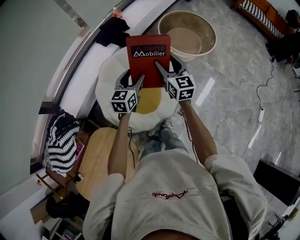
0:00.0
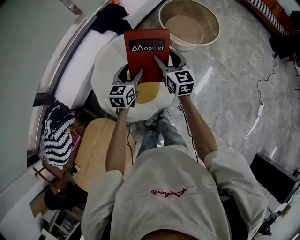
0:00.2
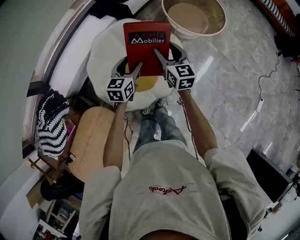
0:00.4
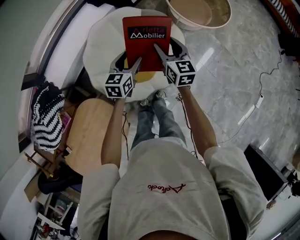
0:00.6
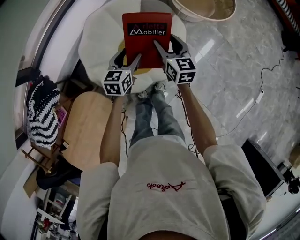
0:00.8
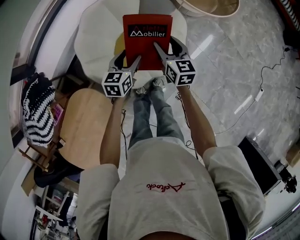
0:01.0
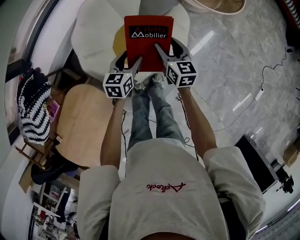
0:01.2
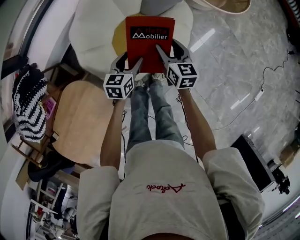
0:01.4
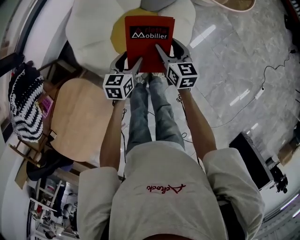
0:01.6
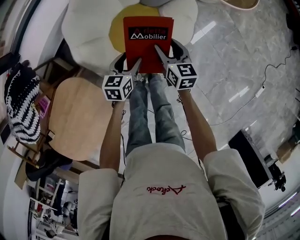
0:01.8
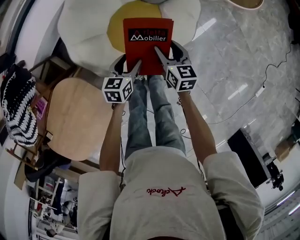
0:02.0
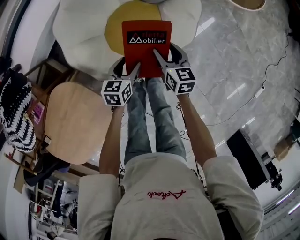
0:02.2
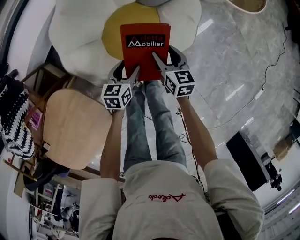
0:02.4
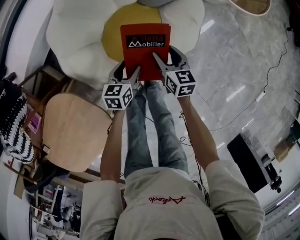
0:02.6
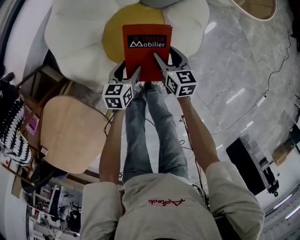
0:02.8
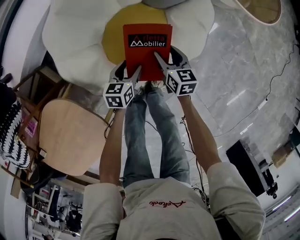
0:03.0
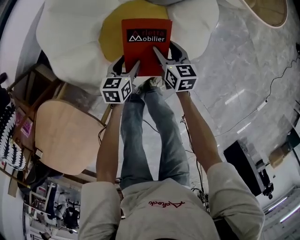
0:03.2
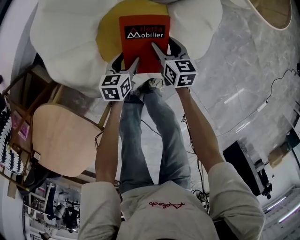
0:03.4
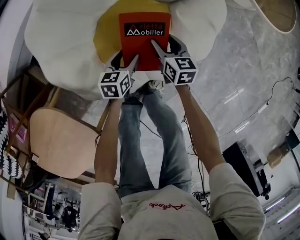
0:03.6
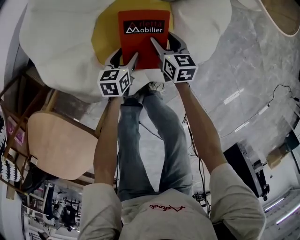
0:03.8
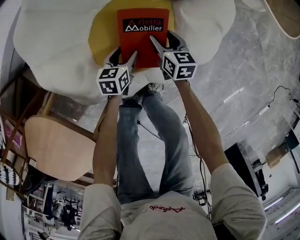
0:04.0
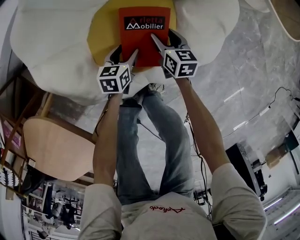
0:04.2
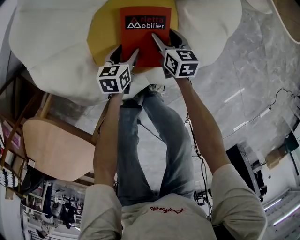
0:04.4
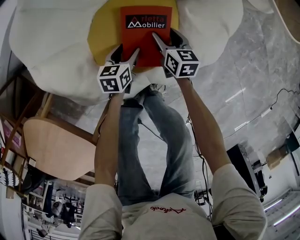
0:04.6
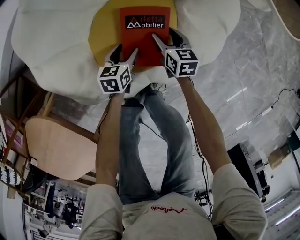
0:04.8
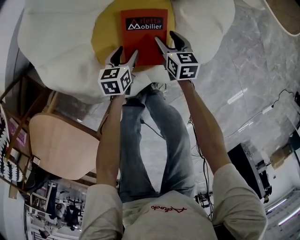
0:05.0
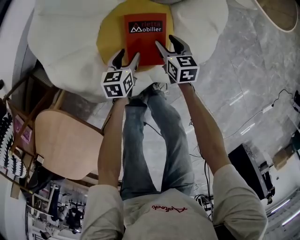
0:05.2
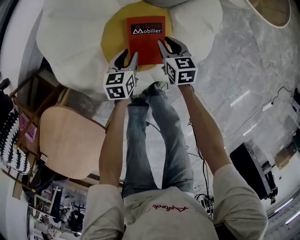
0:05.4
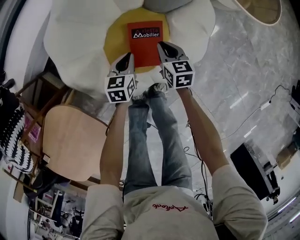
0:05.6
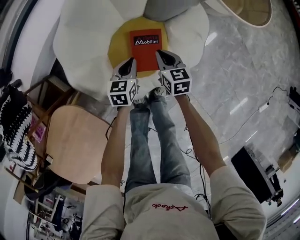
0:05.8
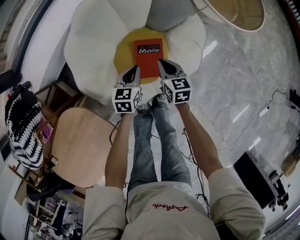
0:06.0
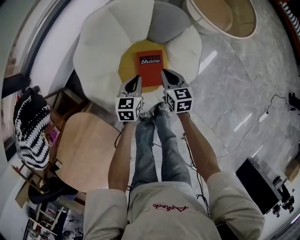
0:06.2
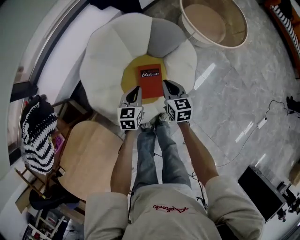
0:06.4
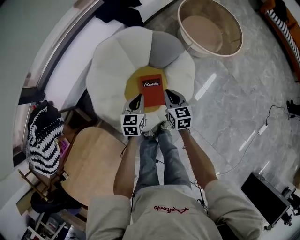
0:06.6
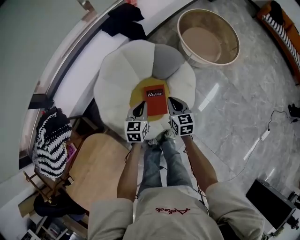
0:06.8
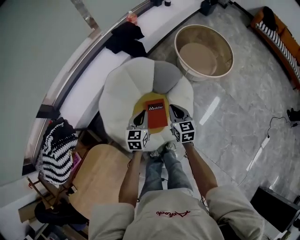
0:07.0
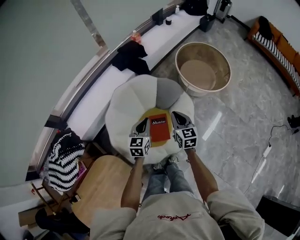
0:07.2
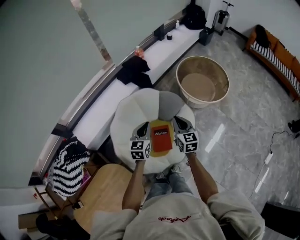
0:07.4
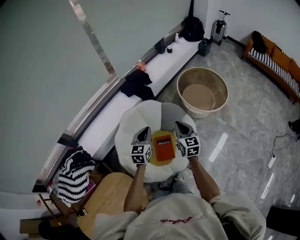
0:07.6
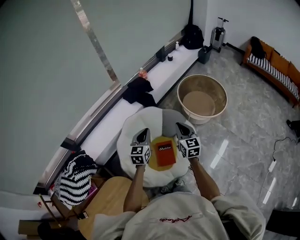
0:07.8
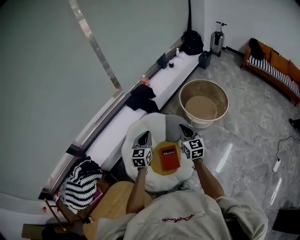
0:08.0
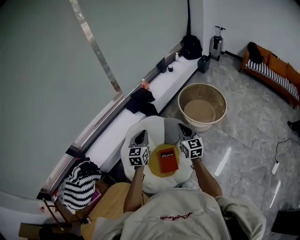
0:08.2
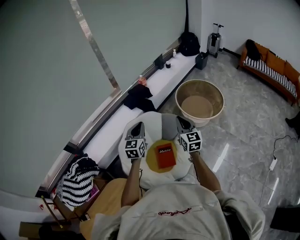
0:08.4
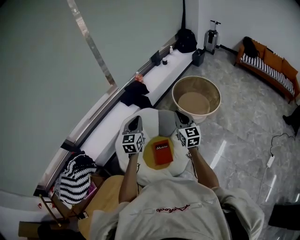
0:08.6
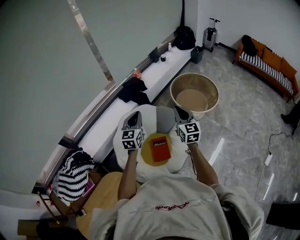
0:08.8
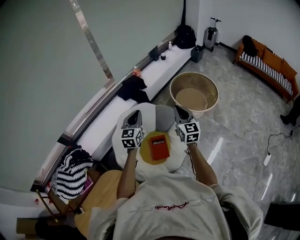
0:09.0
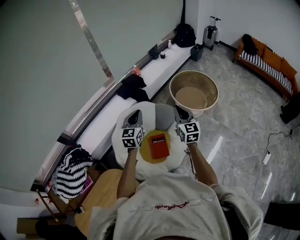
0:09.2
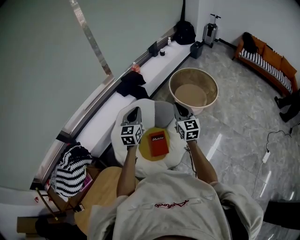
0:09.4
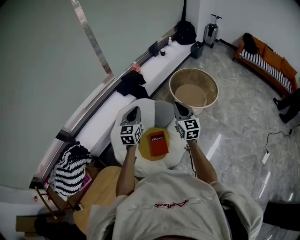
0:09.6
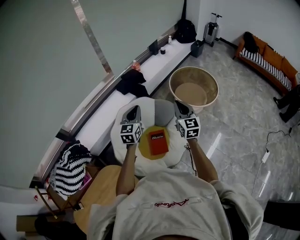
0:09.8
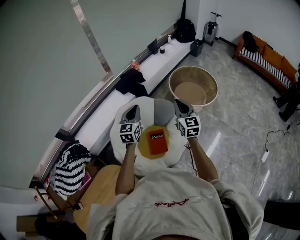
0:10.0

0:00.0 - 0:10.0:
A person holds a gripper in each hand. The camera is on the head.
0:00.0 - 0:01.4: Both grippers move downward, approximately 30 cm. The right gripper rotates approximately 30 degrees. Meanwhile the left gripper changes its angle by approximately 30 degrees.
0:01.4 - 0:02.8: The two grippers go roughly 20 cm downward.
0:02.8 - 0:04.2: The two grippers go approximately 20 cm downward.
0:04.2 - 0:05.8: Both grippers move upward, approximately 25 cm. The left gripper closes its fingers, while the right gripper closes.
0:05.8 - 0:07.2: Both grippers travel together upward, about 35 cm. The right gripper rotates approximately 20 degrees, while the left gripper turns by about 20 degrees.
0:07.2 - 0:08.6: Both grippers move upward, about 20 cm. The right gripper swivels approximately 20 degrees.
0:08.6 - 0:10.0: There are only small adjustments of the grippers.

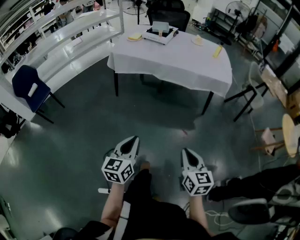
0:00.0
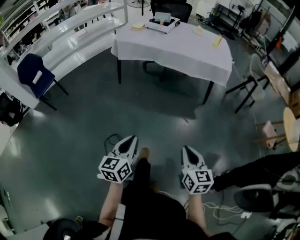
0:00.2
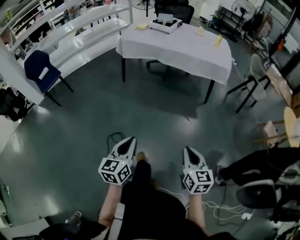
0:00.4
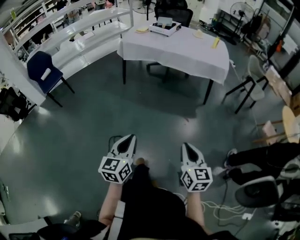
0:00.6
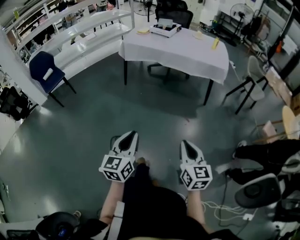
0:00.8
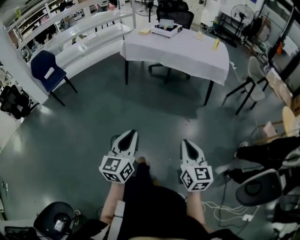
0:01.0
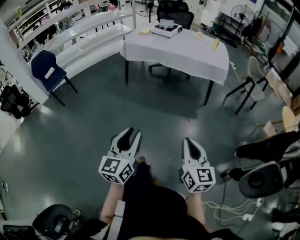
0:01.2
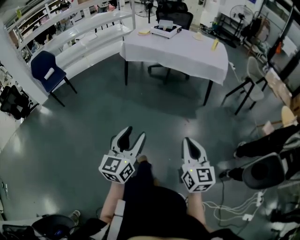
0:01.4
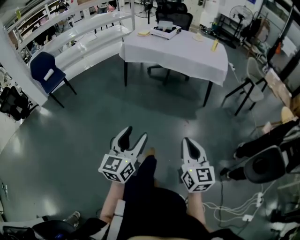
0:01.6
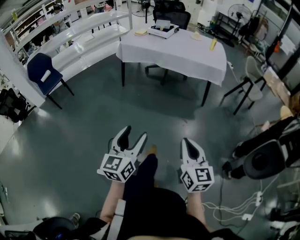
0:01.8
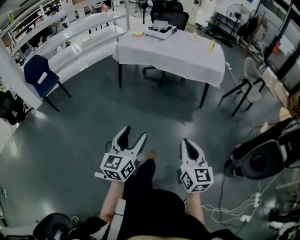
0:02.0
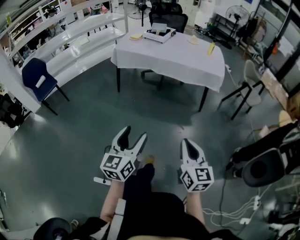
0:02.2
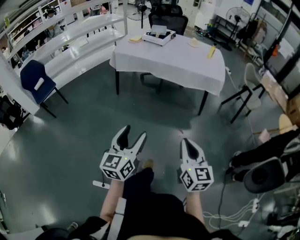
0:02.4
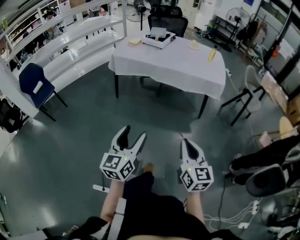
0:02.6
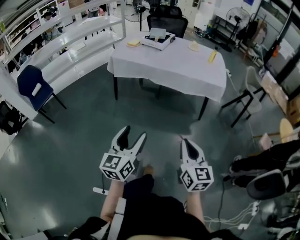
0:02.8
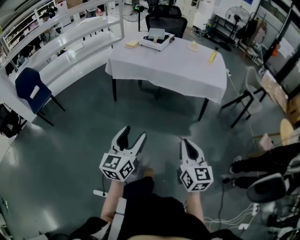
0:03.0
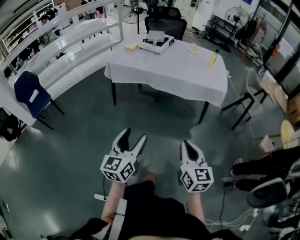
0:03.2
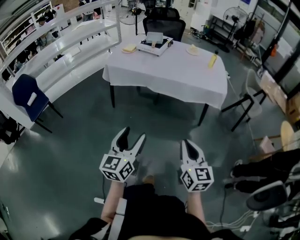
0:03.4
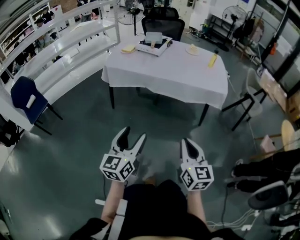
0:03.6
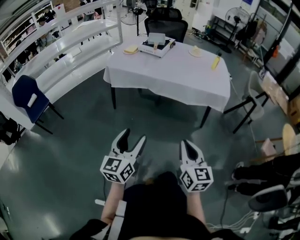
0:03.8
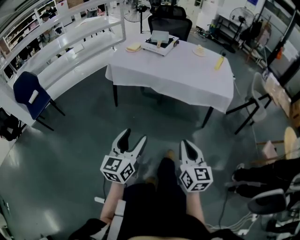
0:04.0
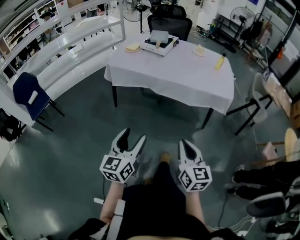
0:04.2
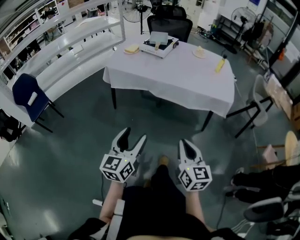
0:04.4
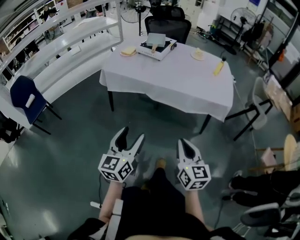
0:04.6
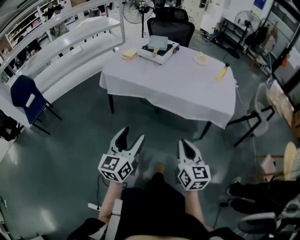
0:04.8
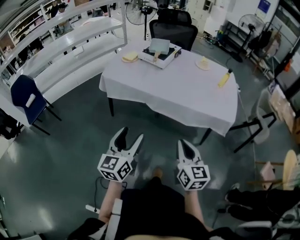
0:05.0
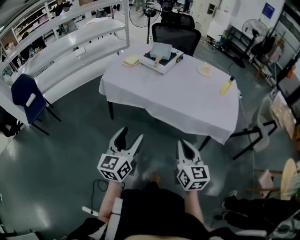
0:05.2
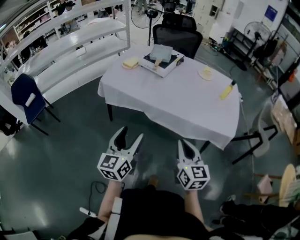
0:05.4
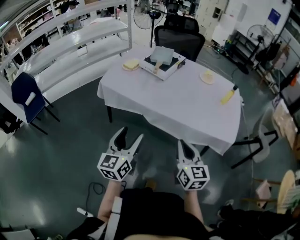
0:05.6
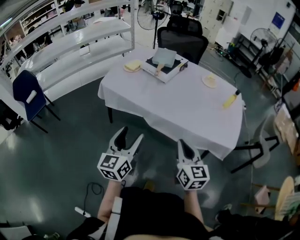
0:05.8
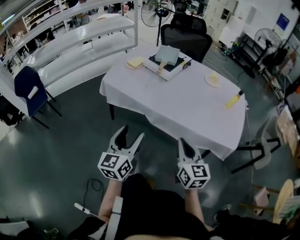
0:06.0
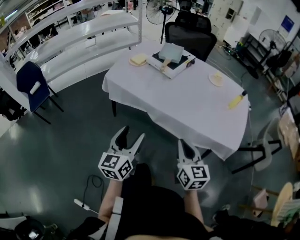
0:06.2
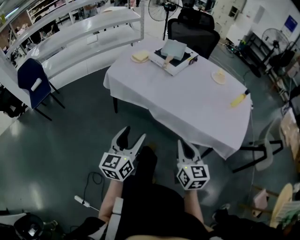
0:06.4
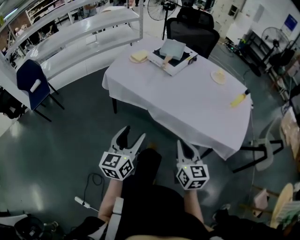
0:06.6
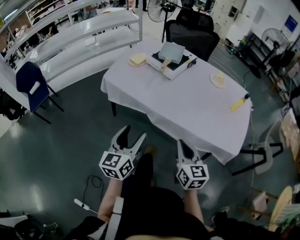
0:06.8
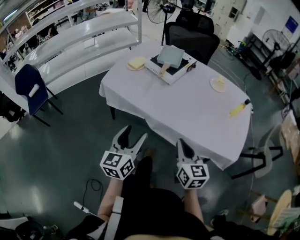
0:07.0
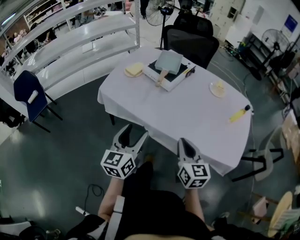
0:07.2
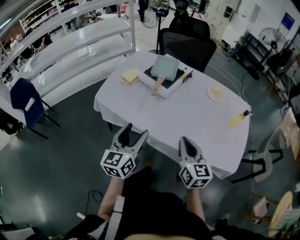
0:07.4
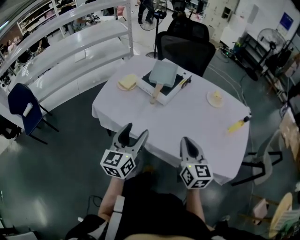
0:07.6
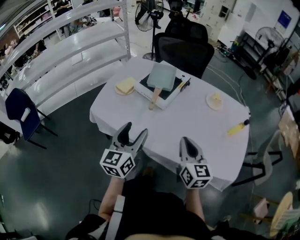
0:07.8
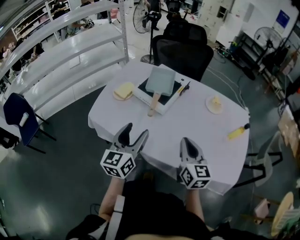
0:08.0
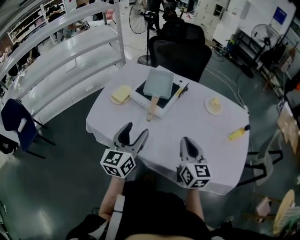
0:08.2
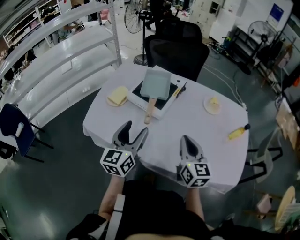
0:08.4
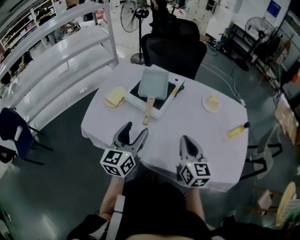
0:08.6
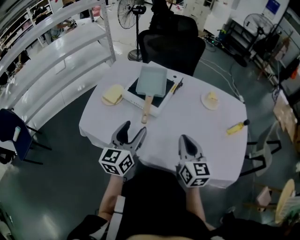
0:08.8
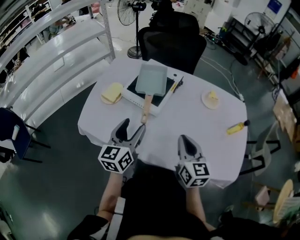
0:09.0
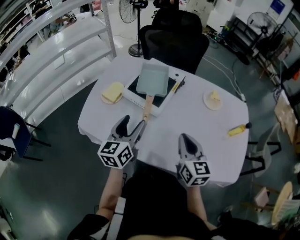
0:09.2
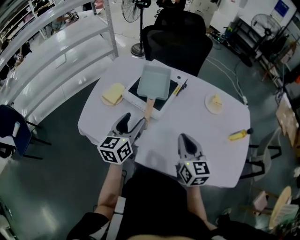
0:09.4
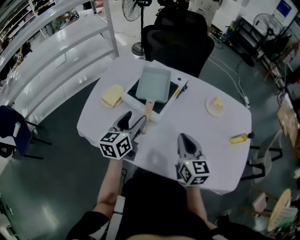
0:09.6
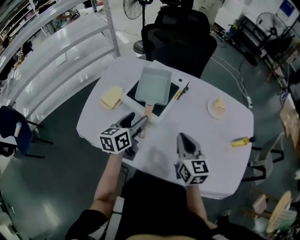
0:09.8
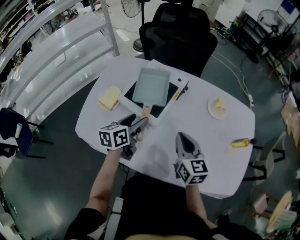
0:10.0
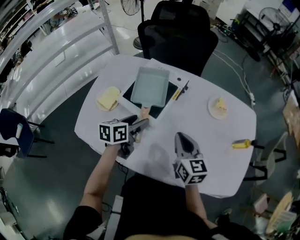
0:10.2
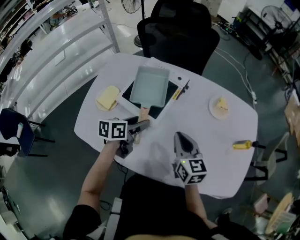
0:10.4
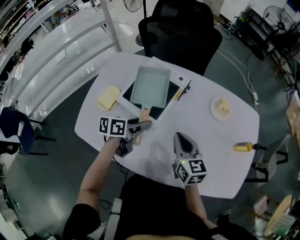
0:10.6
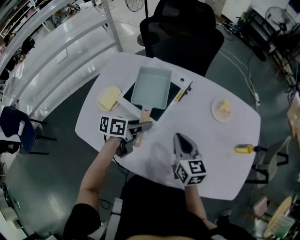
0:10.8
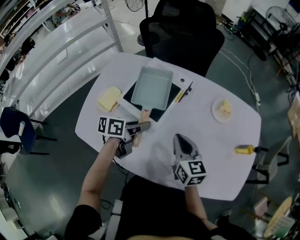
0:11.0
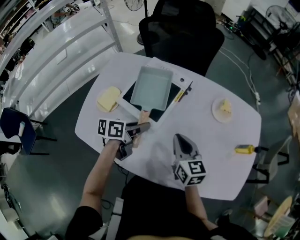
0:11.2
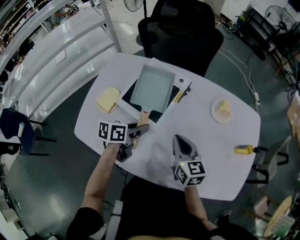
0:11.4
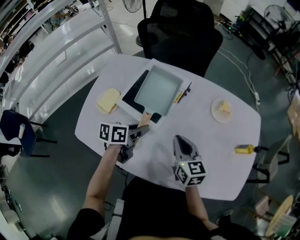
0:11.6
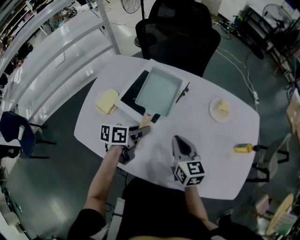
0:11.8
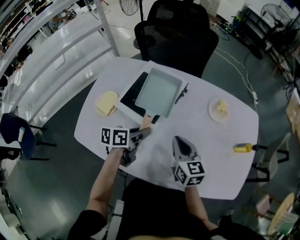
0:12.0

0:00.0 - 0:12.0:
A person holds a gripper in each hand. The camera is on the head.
0:00.0 - 0:01.6: Both grippers move backward, about 25 cm. The left gripper opens its fingers.
0:01.6 - 0:03.0: Both grippers travel together forward, roughly 25 cm.
0:03.0 - 0:04.4: The grippers both shift forward by approximately 15 cm.
0:04.4 - 0:06.0: The grippers both shift forward by some 30 cm.
0:06.0 - 0:07.6: Both grippers travel together forward, some 25 cm.
0:07.6 - 0:09.0: Both grippers move forward, roughly 15 cm.
0:09.0 - 0:10.4: The right gripper travels forward by roughly 15 cm; the left gripper is displaced forward and downward by about 20 cm, and rotates roughly 40 degrees.
0:10.4 - 0:12.0: The left gripper closes up.

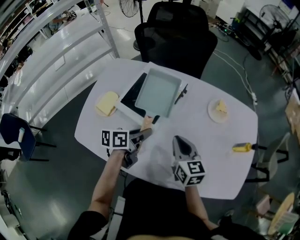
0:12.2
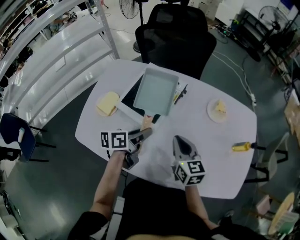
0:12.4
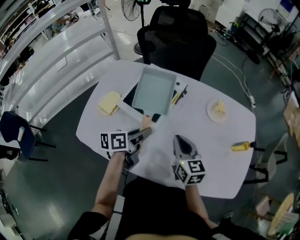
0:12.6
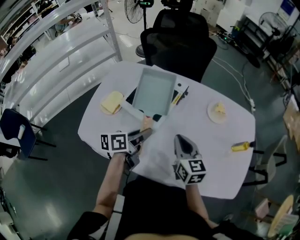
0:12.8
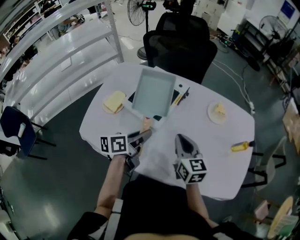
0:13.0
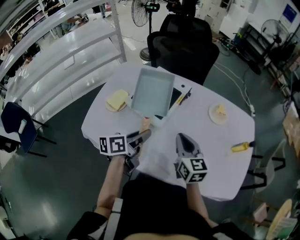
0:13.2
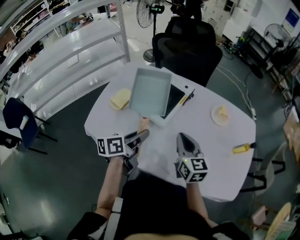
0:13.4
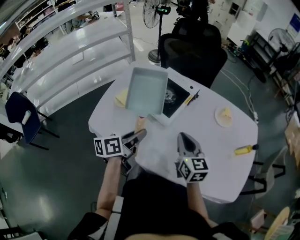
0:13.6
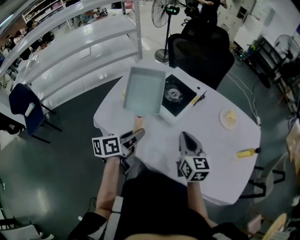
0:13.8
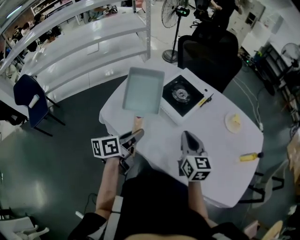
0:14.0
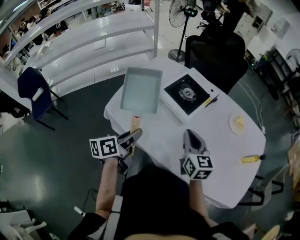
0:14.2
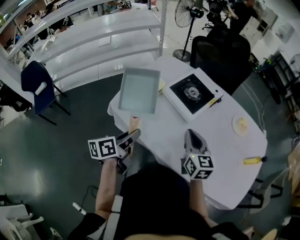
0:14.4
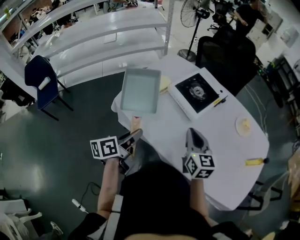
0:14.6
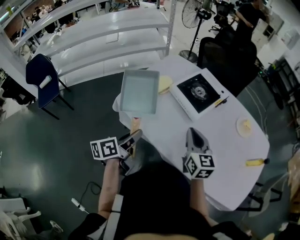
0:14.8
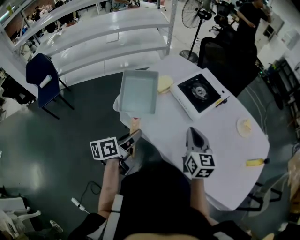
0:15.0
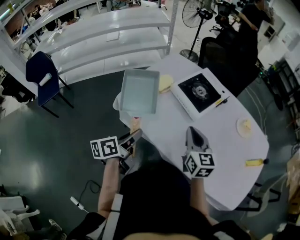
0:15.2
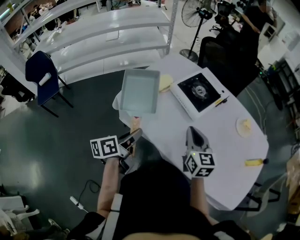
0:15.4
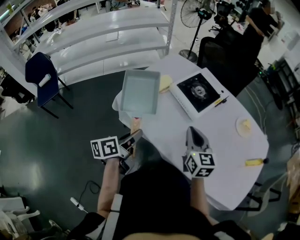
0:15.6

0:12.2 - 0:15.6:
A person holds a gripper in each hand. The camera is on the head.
0:12.2 - 0:13.8: The right gripper heads backward, to the left and upward, covering about 10 cm. The left gripper heads backward, to the left and upward, covering approximately 20 cm, and turns by roughly 20 degrees.
0:13.8 - 0:15.6: The left gripper heads backward and to the left, covering roughly 15 cm. Meanwhile the right gripper shifts about 5 cm to the left.
